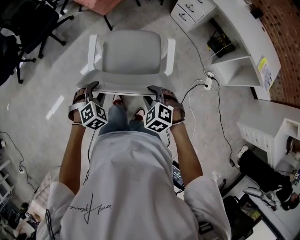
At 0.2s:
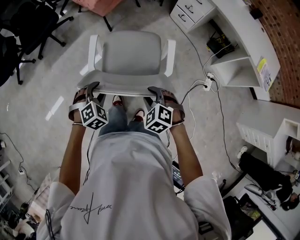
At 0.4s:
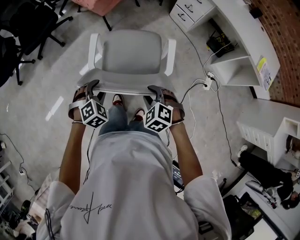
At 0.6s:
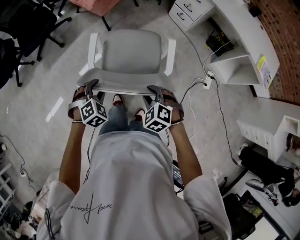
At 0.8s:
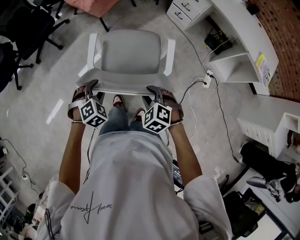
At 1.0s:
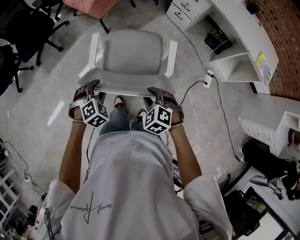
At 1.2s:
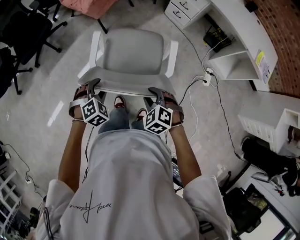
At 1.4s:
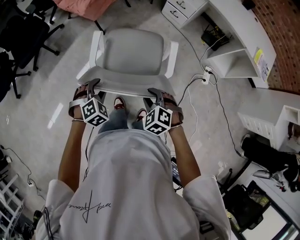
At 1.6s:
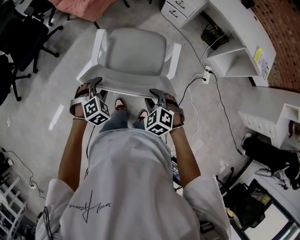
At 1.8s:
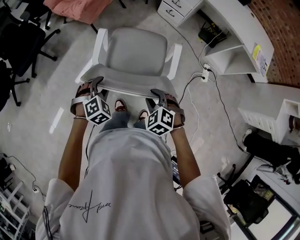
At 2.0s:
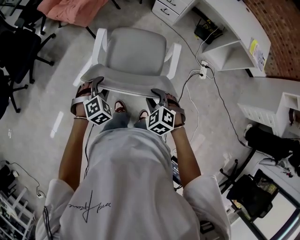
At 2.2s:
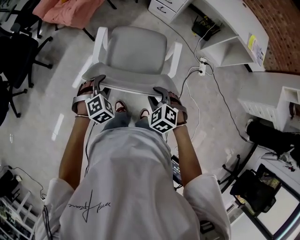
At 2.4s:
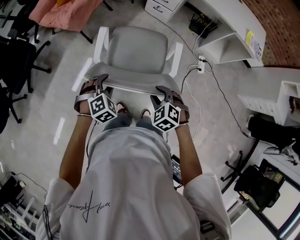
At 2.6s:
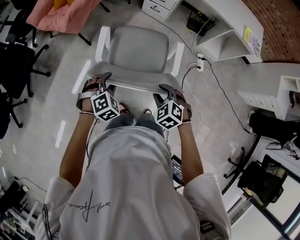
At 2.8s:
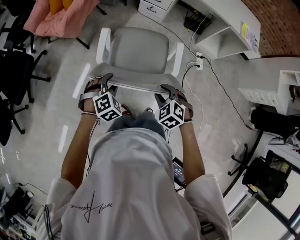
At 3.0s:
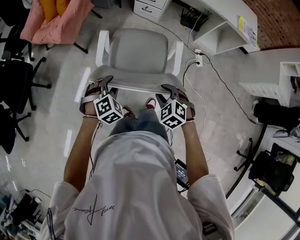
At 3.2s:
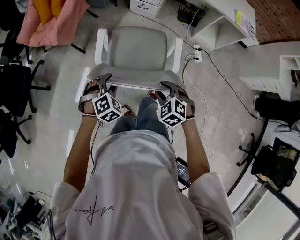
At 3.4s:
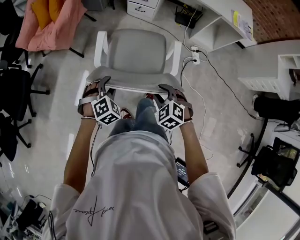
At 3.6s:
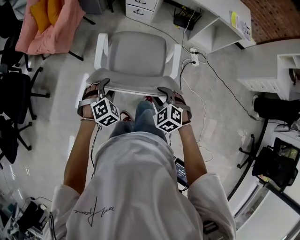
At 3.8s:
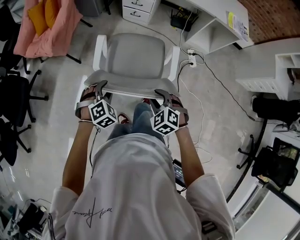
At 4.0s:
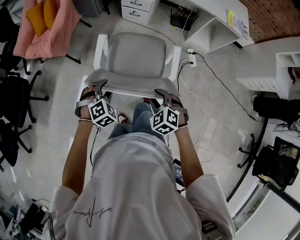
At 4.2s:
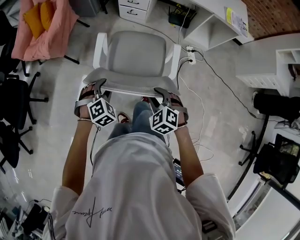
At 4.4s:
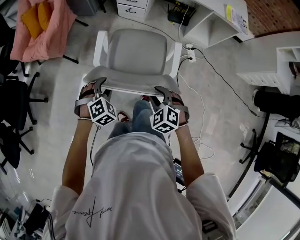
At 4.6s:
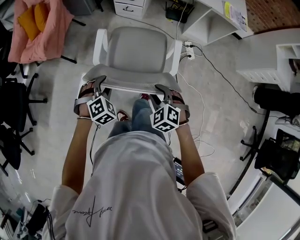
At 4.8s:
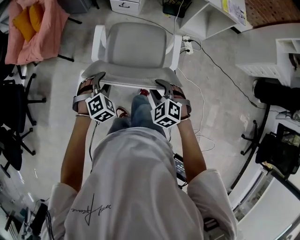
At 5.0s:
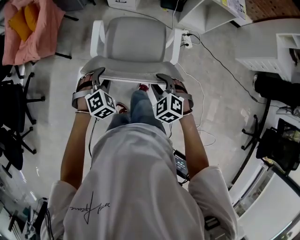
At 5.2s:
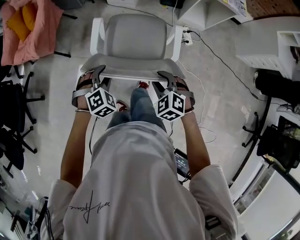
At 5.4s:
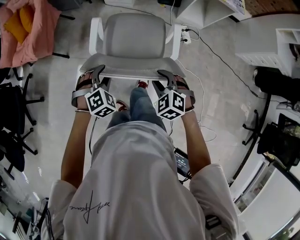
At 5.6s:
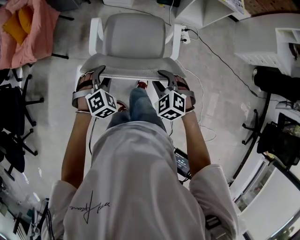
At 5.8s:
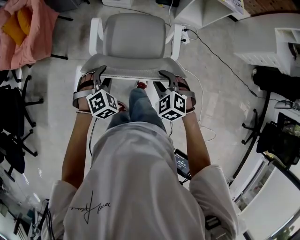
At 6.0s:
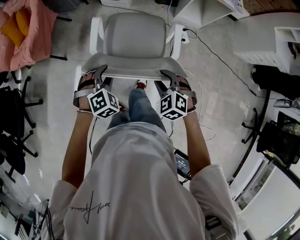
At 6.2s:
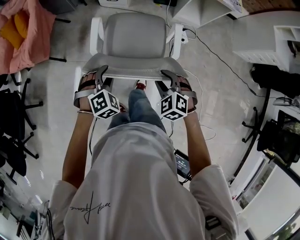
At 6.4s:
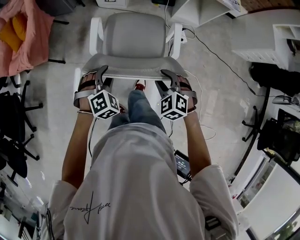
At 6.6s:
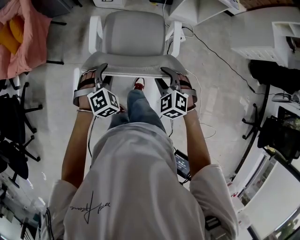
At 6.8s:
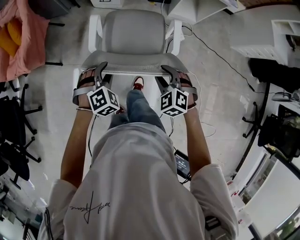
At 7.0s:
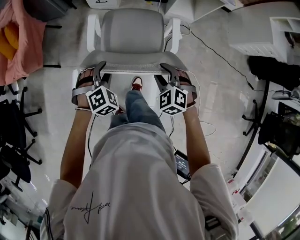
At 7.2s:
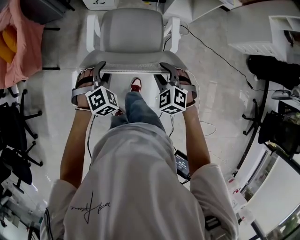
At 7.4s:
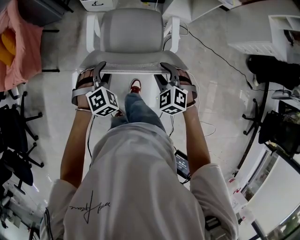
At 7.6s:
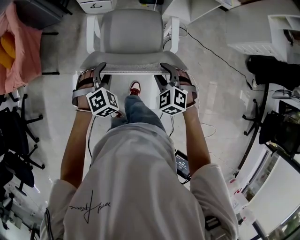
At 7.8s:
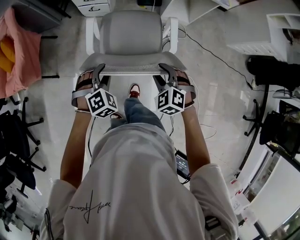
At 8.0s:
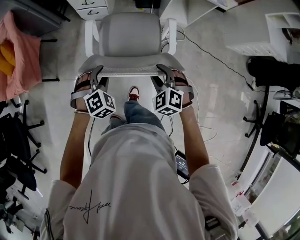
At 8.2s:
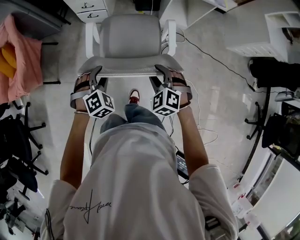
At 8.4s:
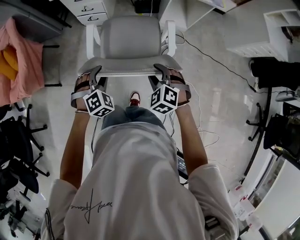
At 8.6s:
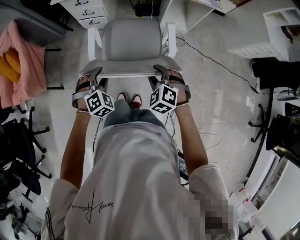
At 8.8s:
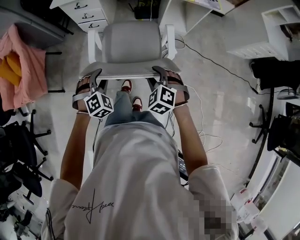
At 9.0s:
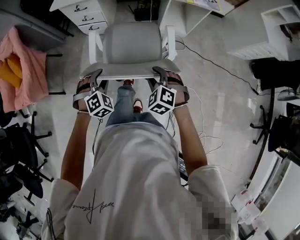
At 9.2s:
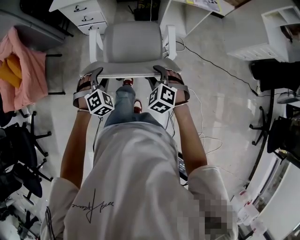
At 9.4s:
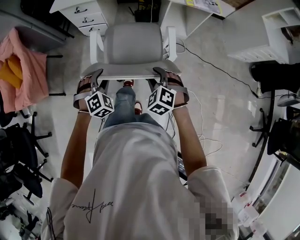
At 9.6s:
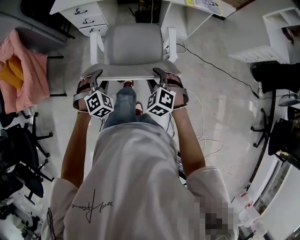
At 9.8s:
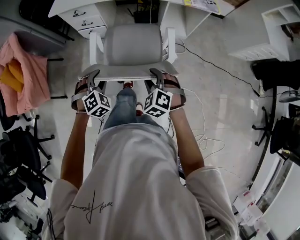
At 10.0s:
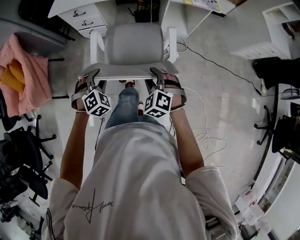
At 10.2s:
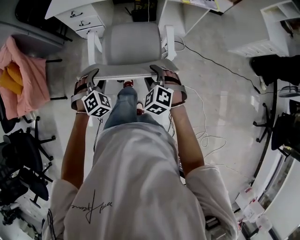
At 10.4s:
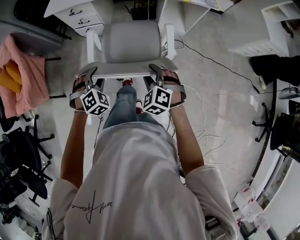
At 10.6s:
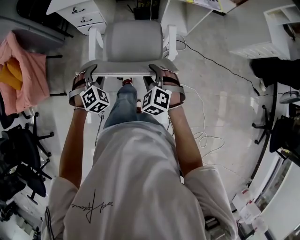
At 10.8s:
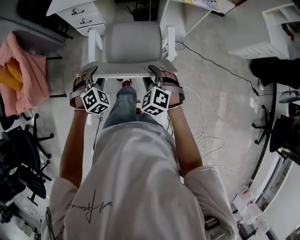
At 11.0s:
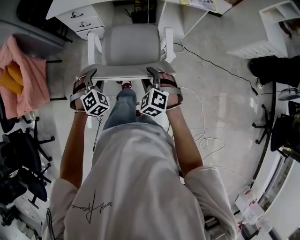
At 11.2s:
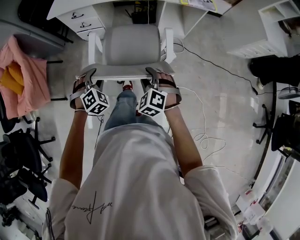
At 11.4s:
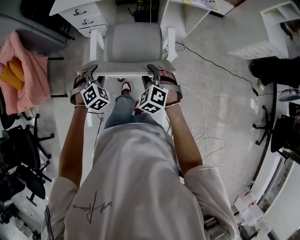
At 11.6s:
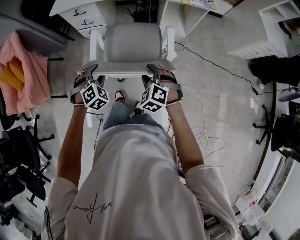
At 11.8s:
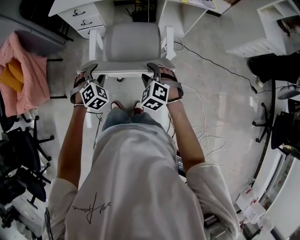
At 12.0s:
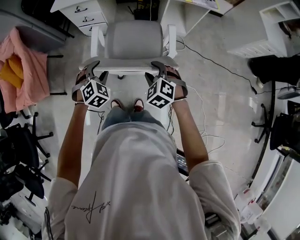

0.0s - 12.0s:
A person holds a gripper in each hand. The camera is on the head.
0.0s - 1.6s: The left gripper travels forward by roughly 10 cm.
1.6s - 3.0s: The right gripper shifts by roughly 5 cm; the left gripper is displaced forward and to the right by roughly 10 cm.
3.0s - 4.4s: The grippers both shift to the right by some 5 cm.
4.4s - 6.0s: The two grippers go some 5 cm to the right.
6.0s - 7.6s: Both grippers travel together forward and to the right, some 10 cm.
7.6s - 9.0s: The grippers both shift forward by approximately 5 cm.
9.0s - 12.0s: The grippers move only a little.

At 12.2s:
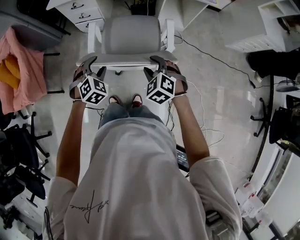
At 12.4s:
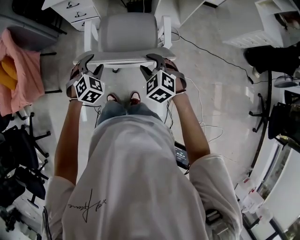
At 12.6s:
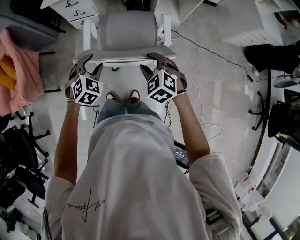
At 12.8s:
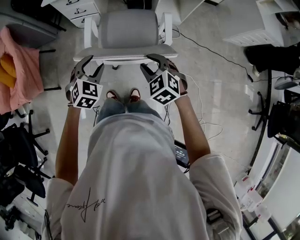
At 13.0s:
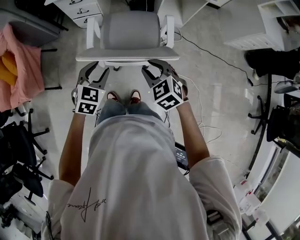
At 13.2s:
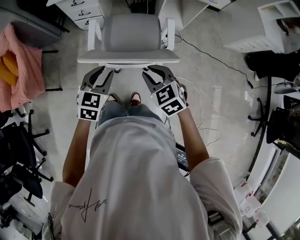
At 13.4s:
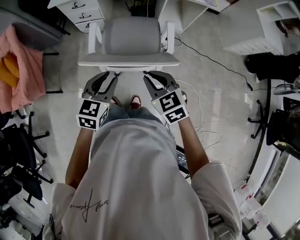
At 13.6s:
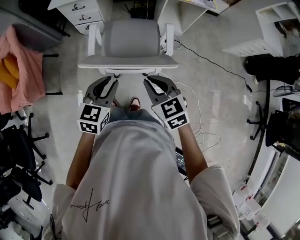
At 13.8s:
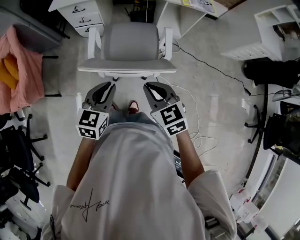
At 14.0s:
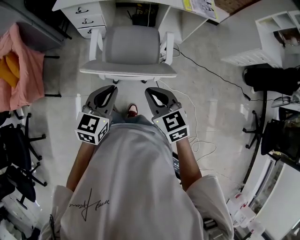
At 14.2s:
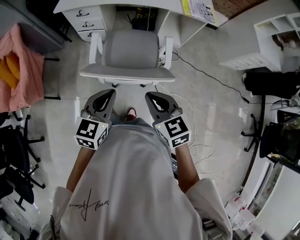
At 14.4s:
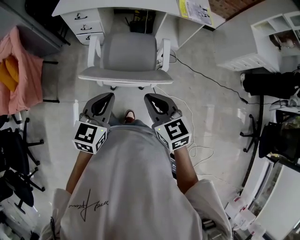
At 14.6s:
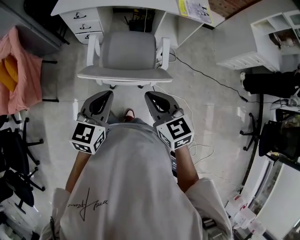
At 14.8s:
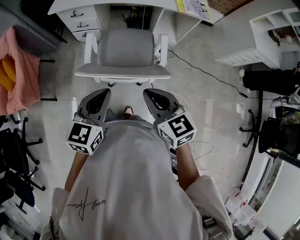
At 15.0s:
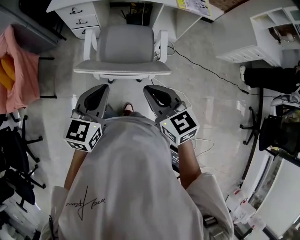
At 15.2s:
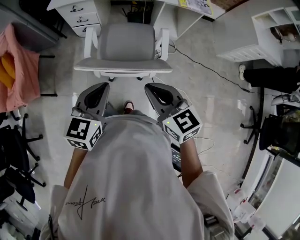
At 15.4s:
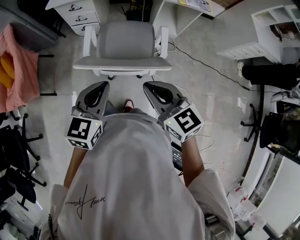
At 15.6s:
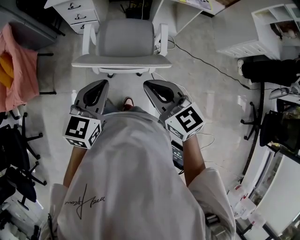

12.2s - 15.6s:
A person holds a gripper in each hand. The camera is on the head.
12.2s - 13.8s: Both grippers move upward and backward, some 10 cm. The right gripper changes its angle by some 40 degrees, and closes up. The left gripper rolls counterclockwise, seen from behind, by about 40 degrees, and closes.
13.8s - 15.6s: Both grippers move upward, about 10 cm.

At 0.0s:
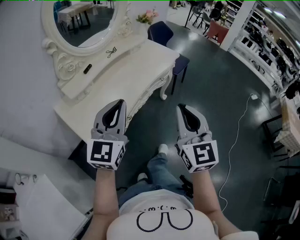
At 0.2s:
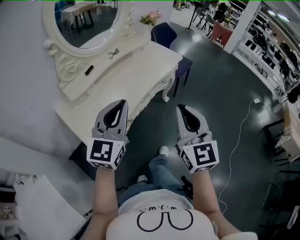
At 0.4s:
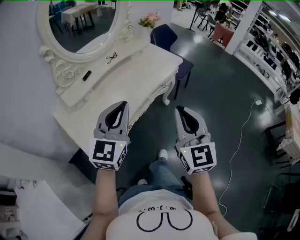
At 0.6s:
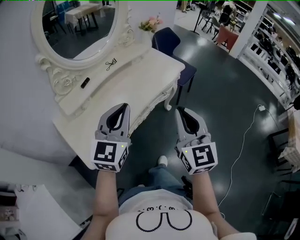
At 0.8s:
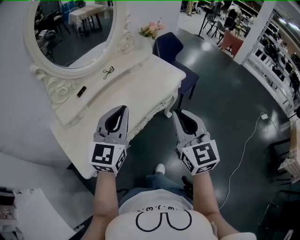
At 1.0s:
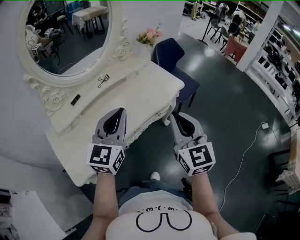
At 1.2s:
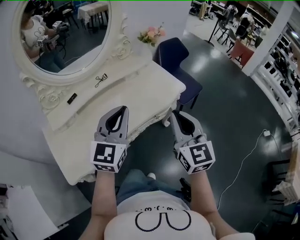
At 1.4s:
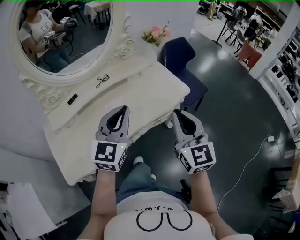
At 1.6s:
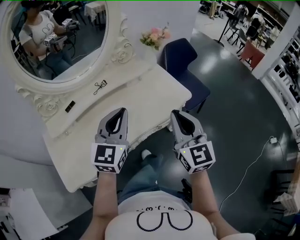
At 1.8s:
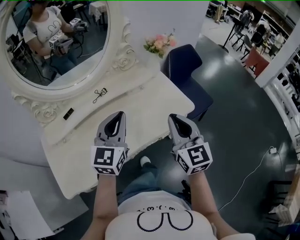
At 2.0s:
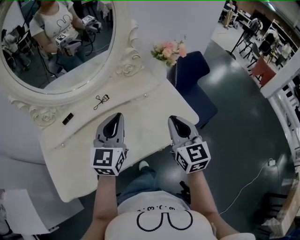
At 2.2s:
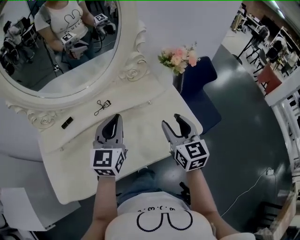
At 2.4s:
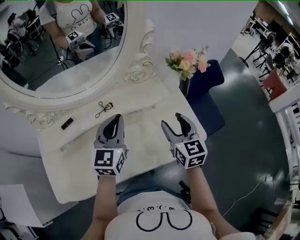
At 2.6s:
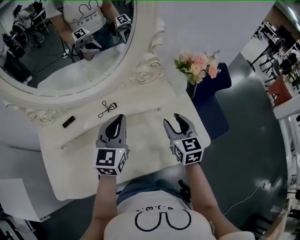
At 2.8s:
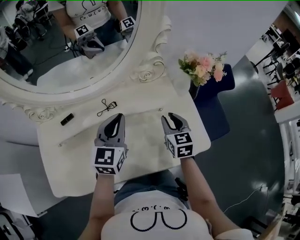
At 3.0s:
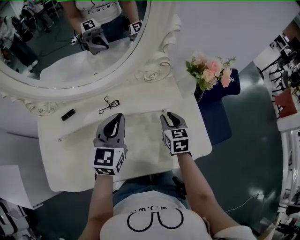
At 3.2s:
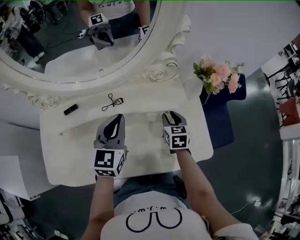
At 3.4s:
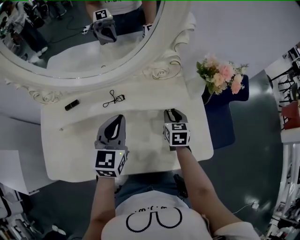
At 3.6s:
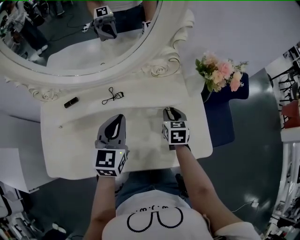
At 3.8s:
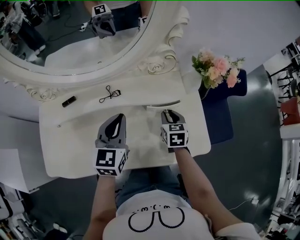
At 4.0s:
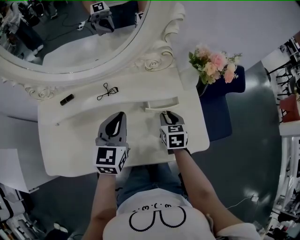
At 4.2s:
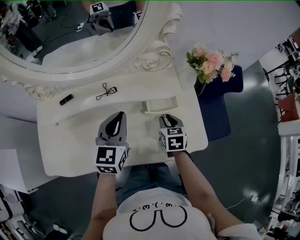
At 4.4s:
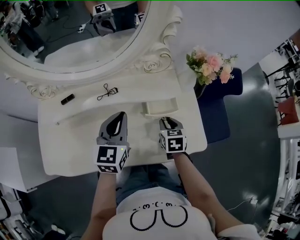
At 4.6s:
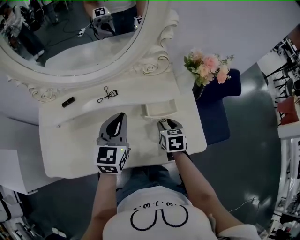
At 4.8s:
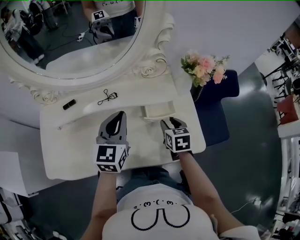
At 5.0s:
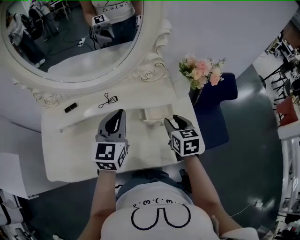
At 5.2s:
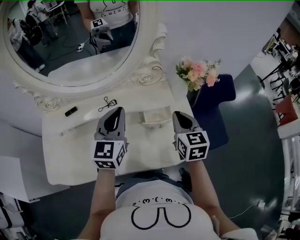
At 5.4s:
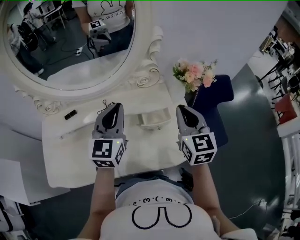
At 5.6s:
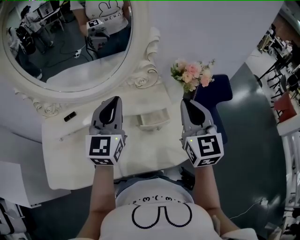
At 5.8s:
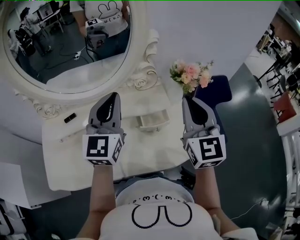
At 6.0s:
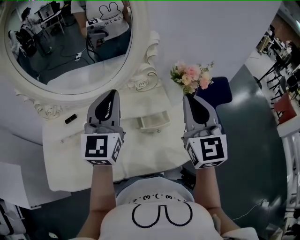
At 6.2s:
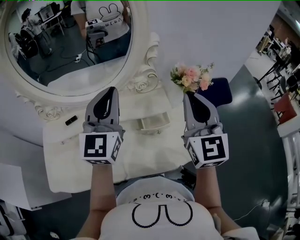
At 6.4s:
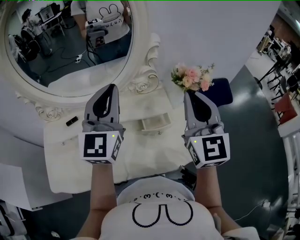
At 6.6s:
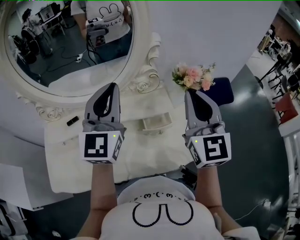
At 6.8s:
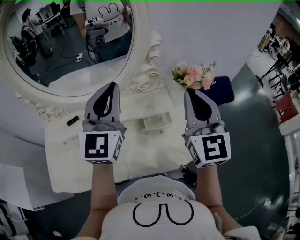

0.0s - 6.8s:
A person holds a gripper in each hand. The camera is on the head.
0.0s - 1.4s: Both grippers move forward and to the right, roughly 35 cm.
1.4s - 2.8s: The left gripper heads forward, covering roughly 30 cm, and rotates some 30 degrees, while the right gripper moves forward and downward, approximately 40 cm, swivels about 30 degrees, and opens its fingers.
2.8s - 4.0s: The right gripper heads downward, covering roughly 5 cm.
4.0s - 5.4s: The right gripper is displaced upward by about 25 cm, angles its fingers upward, by some 30 degrees, and closes its fingers, while the left gripper shifts approximately 10 cm upward.
5.4s - 6.8s: The grippers both shift upward by roughly 10 cm.

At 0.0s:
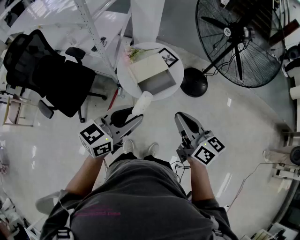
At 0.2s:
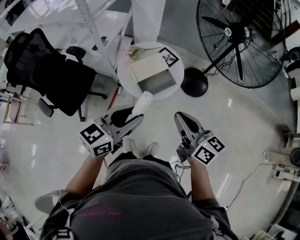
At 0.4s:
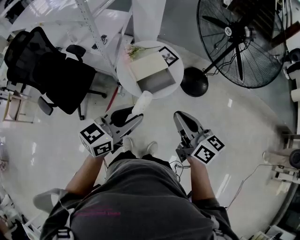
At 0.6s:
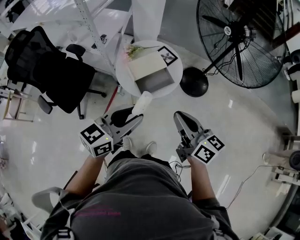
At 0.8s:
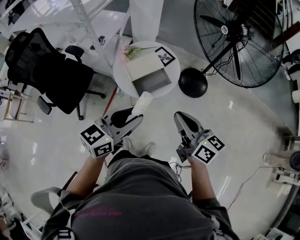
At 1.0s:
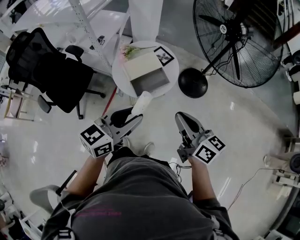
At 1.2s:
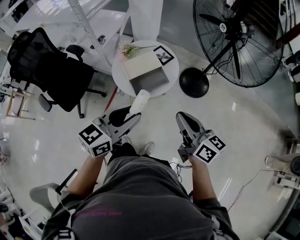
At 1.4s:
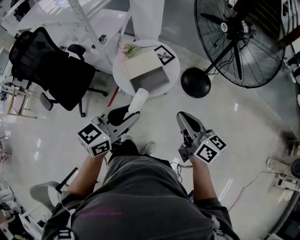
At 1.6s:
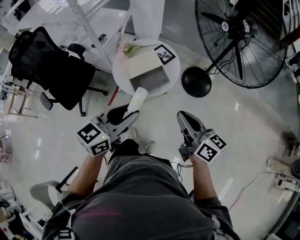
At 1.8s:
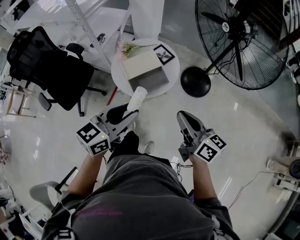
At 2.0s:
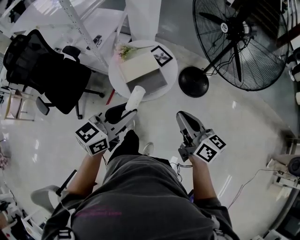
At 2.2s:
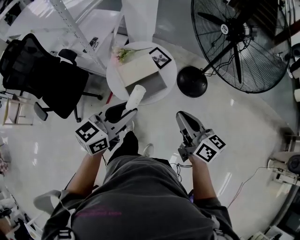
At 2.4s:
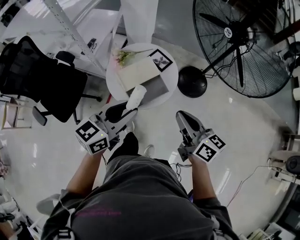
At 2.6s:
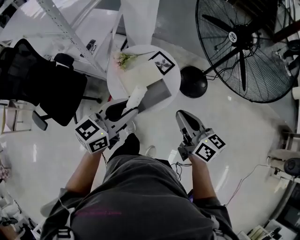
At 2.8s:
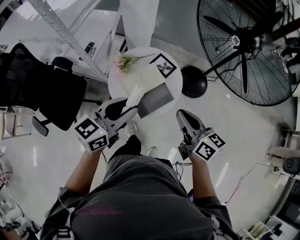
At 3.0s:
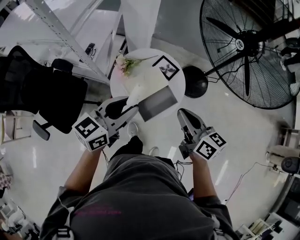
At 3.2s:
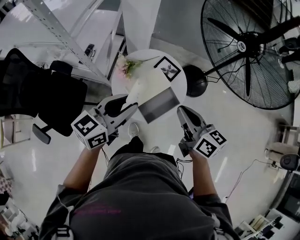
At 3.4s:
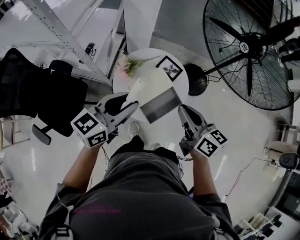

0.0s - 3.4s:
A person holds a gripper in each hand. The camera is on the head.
0.0s - 1.6s: The two grippers go about 10 cm to the right.
1.6s - 3.4s: Both grippers move forward and to the left, roughly 30 cm.
